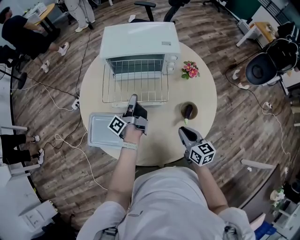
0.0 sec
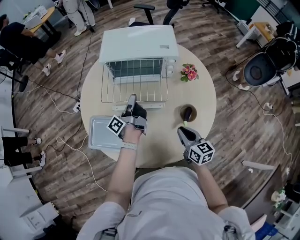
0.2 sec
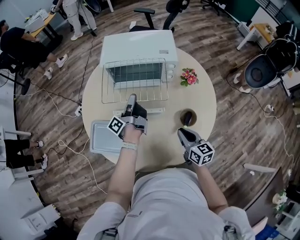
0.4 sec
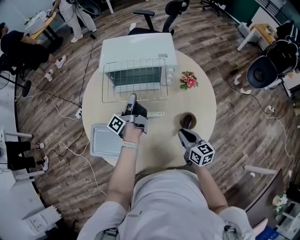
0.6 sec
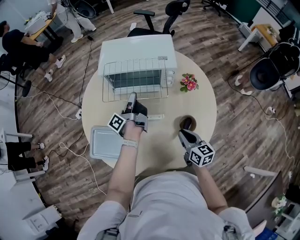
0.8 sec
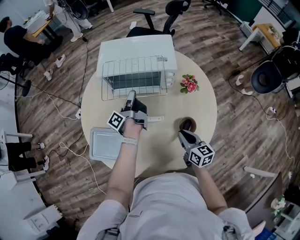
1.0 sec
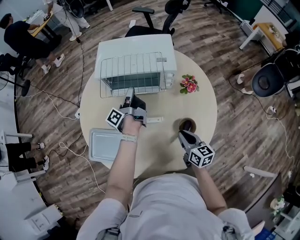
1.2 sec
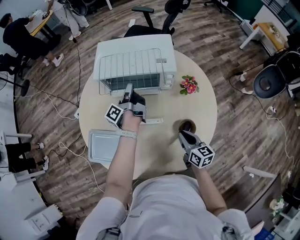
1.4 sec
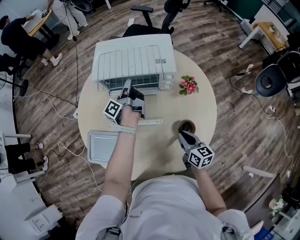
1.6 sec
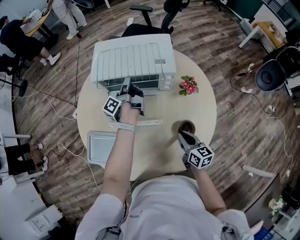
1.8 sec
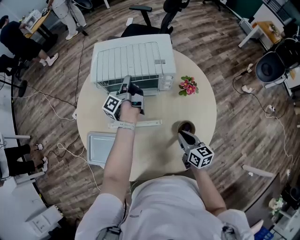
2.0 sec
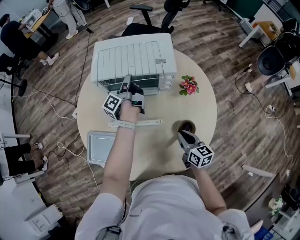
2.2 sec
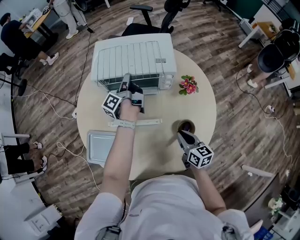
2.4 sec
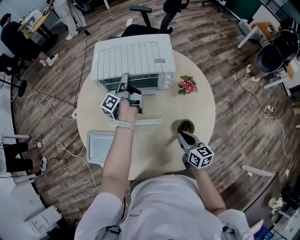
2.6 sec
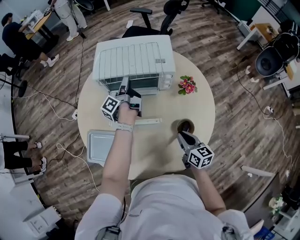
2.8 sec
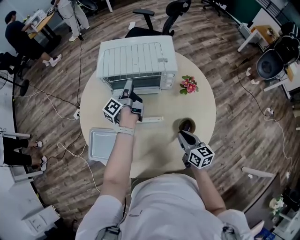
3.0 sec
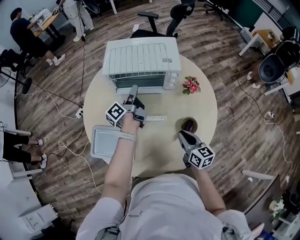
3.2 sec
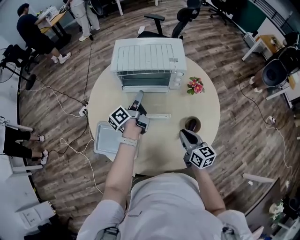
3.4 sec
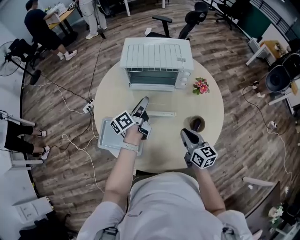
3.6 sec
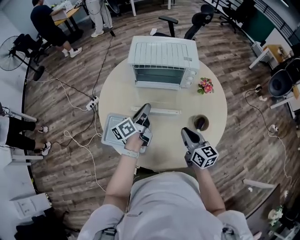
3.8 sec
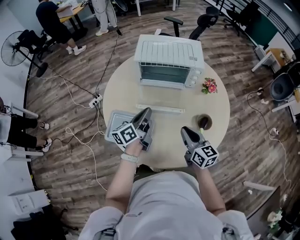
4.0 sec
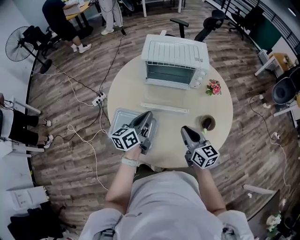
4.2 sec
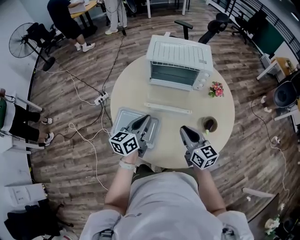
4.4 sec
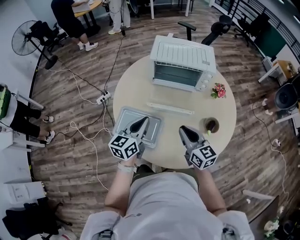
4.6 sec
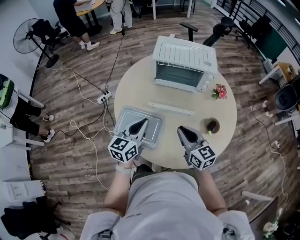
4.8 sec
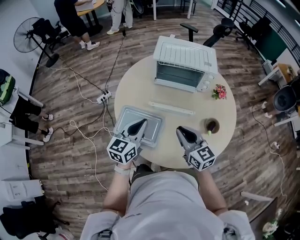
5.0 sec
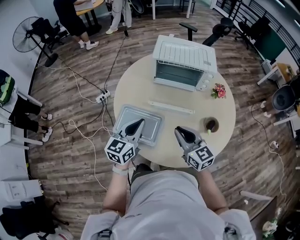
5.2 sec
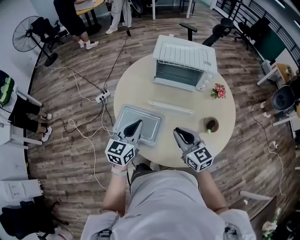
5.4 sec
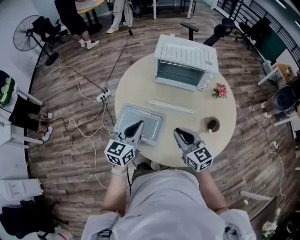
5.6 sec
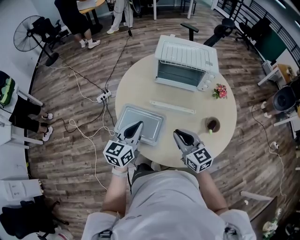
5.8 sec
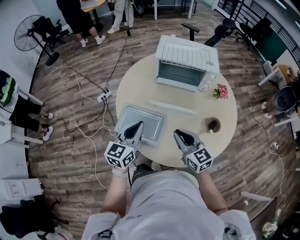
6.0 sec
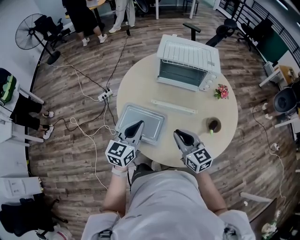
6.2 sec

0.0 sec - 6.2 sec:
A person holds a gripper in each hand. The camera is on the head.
0.0 sec - 1.6 sec: The right gripper moves forward, some 10 cm, while the left gripper is displaced forward by roughly 20 cm.
1.6 sec - 3.2 sec: The left gripper is displaced backward by about 5 cm, and opens up. The right gripper ends up about 5 cm from where it was.
3.2 sec - 4.6 sec: The left gripper travels backward and to the left by approximately 30 cm, rotates around the line of its fingers by about 60 degrees, clockwise from behind, and closes. Meanwhile the right gripper is displaced to the left and upward by roughly 20 cm, and swivels roughly 20 degrees.
4.6 sec - 6.2 sec: The right gripper travels to the left by approximately 5 cm. Meanwhile the left gripper moves roughly 5 cm.

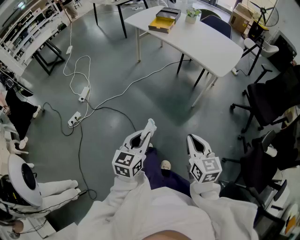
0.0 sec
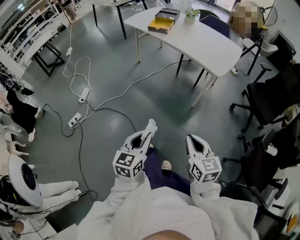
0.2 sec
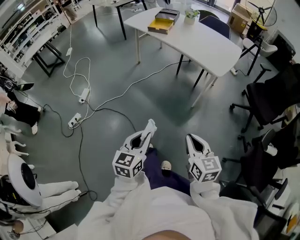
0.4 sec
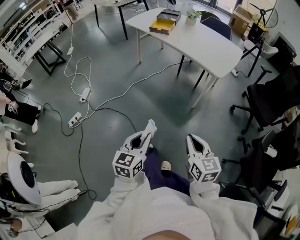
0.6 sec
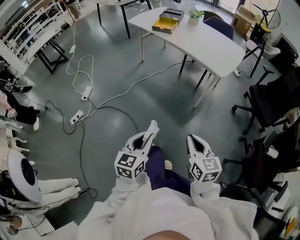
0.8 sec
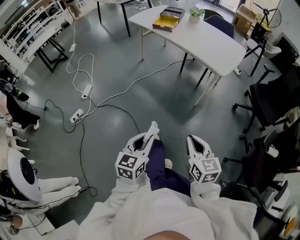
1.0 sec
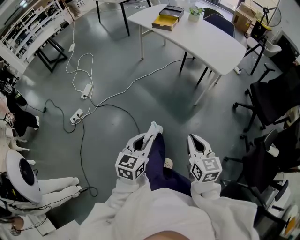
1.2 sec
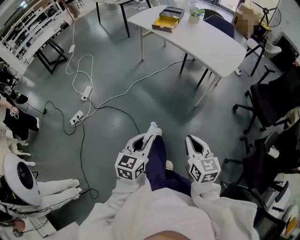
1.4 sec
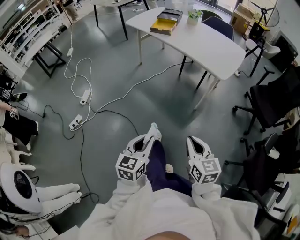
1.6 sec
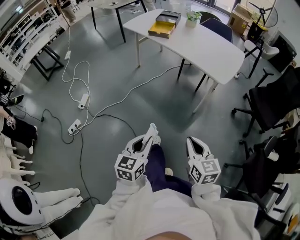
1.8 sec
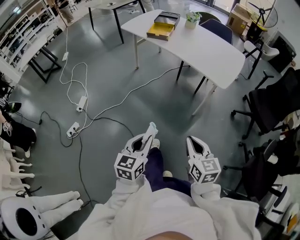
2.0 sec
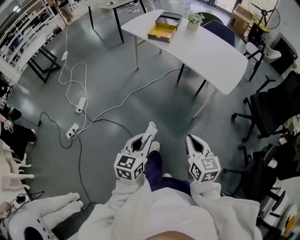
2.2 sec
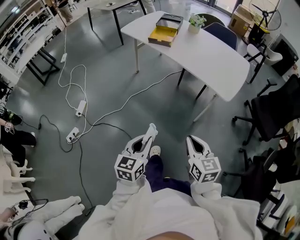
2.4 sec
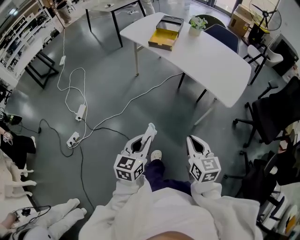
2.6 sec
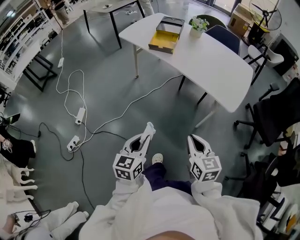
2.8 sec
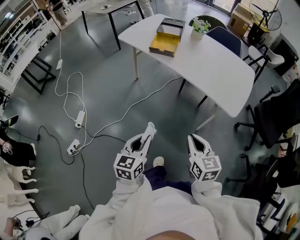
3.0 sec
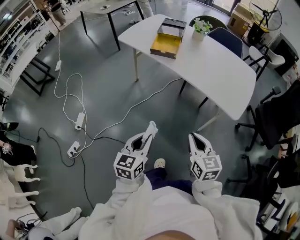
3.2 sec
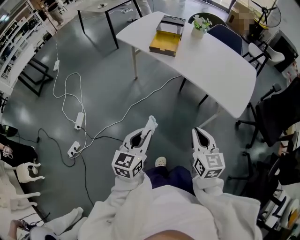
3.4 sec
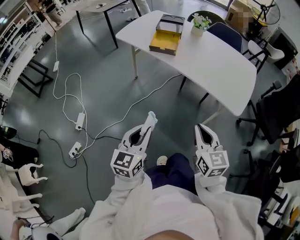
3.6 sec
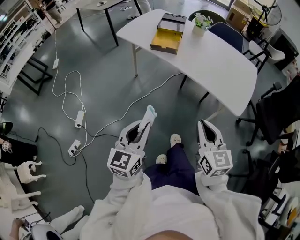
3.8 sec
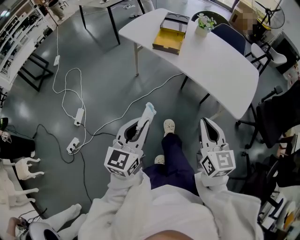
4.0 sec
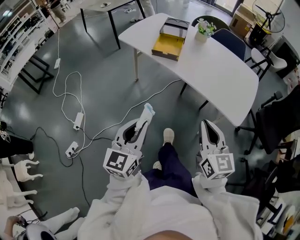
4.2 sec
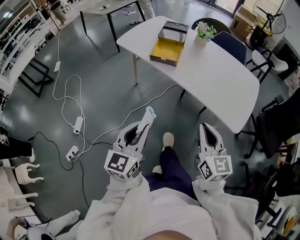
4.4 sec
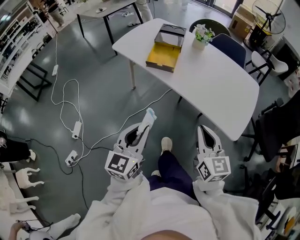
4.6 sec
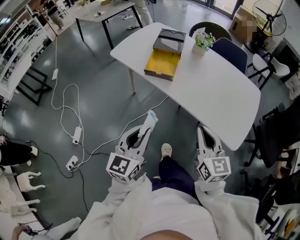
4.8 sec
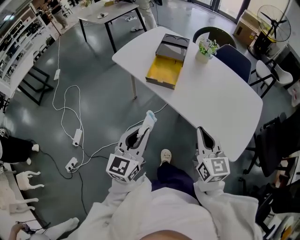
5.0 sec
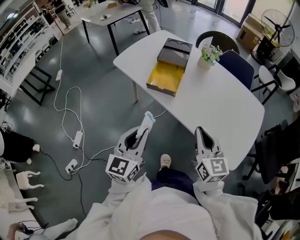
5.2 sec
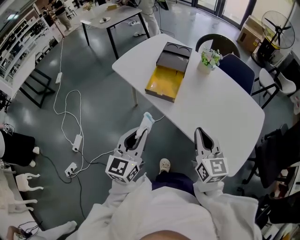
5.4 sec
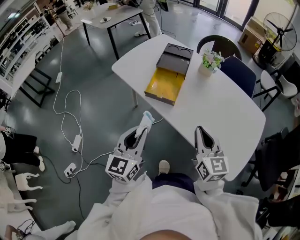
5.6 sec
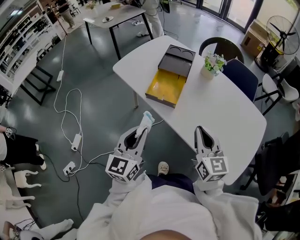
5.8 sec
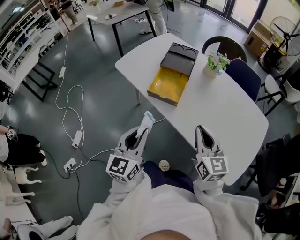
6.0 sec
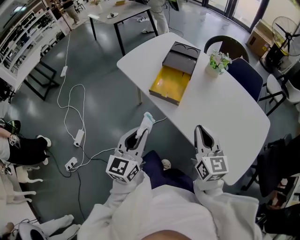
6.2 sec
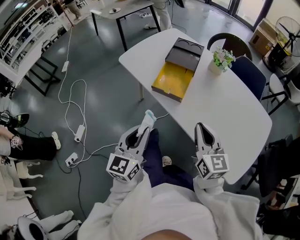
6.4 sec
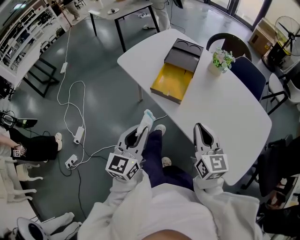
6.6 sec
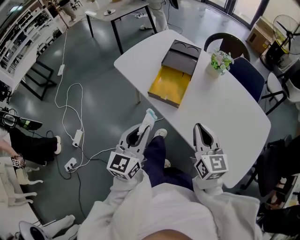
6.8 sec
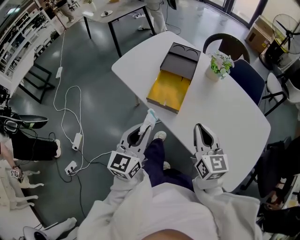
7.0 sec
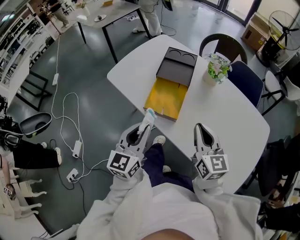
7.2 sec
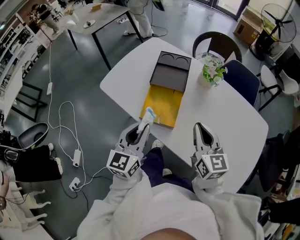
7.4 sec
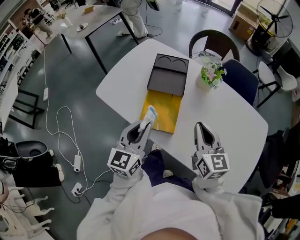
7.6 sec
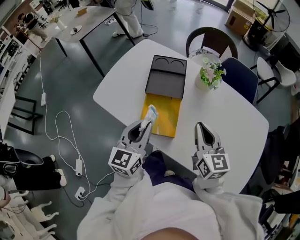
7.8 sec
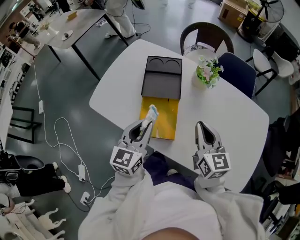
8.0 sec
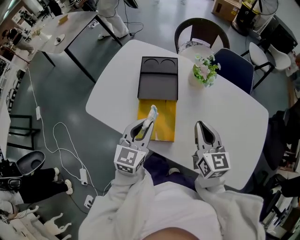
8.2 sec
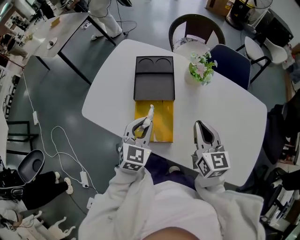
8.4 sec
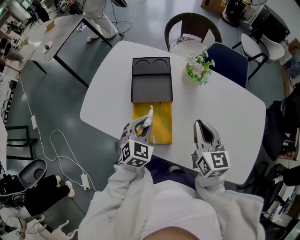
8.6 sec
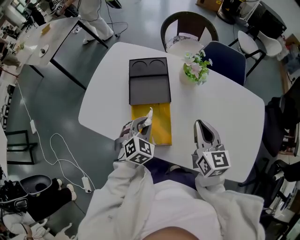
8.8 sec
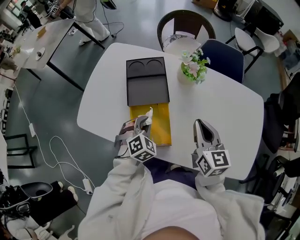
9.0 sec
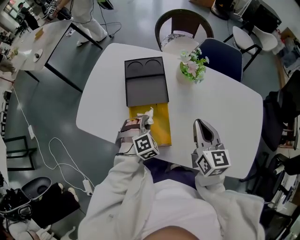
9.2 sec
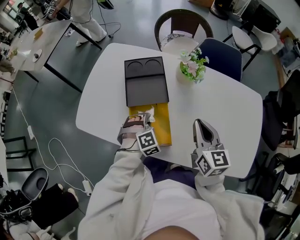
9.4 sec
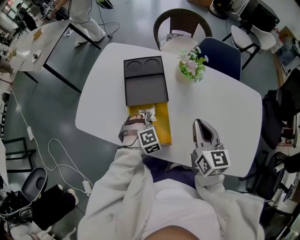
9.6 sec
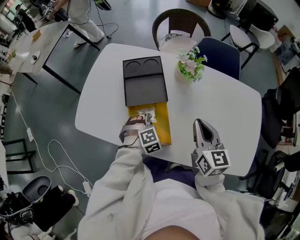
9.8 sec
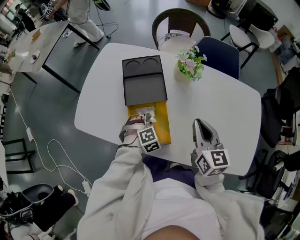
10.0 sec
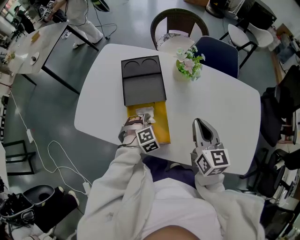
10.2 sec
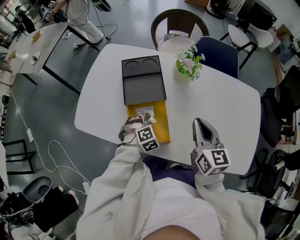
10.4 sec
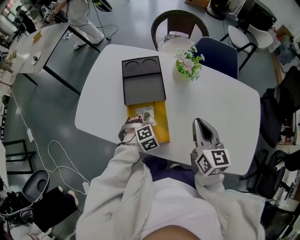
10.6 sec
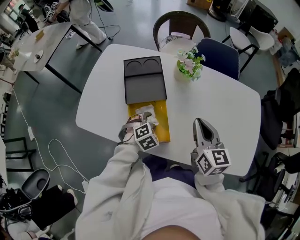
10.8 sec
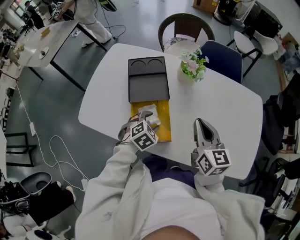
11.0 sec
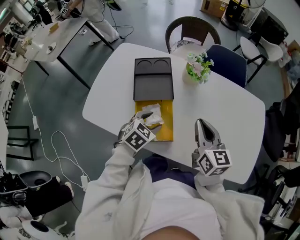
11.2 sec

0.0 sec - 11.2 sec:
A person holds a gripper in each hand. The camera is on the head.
0.0 sec - 1.6 sec: The grippers make only small movements.
1.6 sec - 3.2 sec: Both grippers move forward, about 30 cm.
3.2 sec - 4.8 sec: The left gripper moves forward and upward, about 20 cm. Meanwhile the right gripper is displaced forward by roughly 20 cm.
4.8 sec - 6.4 sec: The grippers both shift forward by some 15 cm.
6.4 sec - 8.0 sec: The grippers both shift forward by approximately 25 cm. The left gripper changes its angle by roughly 20 degrees.
8.0 sec - 9.6 sec: The left gripper travels downward and forward by about 20 cm, and rotates around the line of its fingers by approximately 70 degrees, clockwise from behind.
9.6 sec - 11.2 sec: The left gripper shifts approximately 5 cm upward, swivels roughly 40 degrees, and opens up.

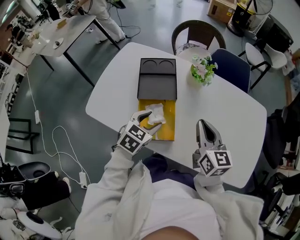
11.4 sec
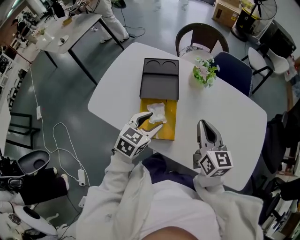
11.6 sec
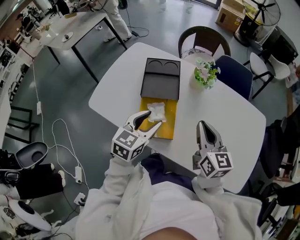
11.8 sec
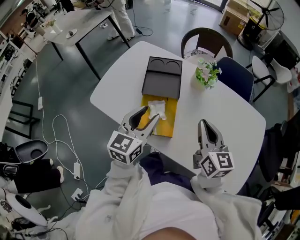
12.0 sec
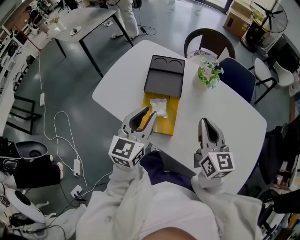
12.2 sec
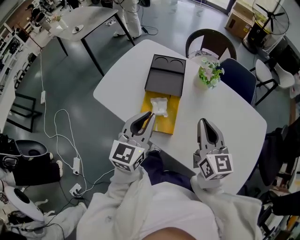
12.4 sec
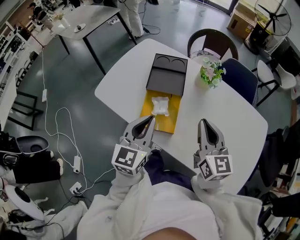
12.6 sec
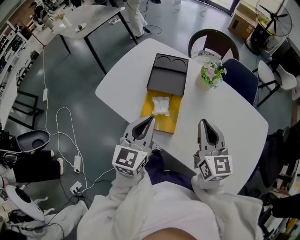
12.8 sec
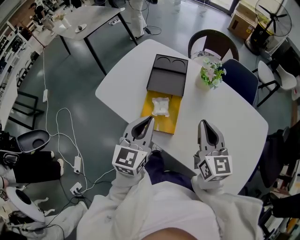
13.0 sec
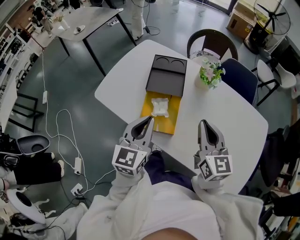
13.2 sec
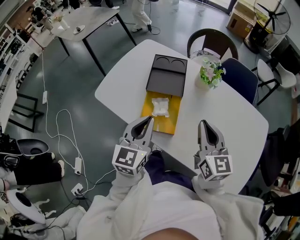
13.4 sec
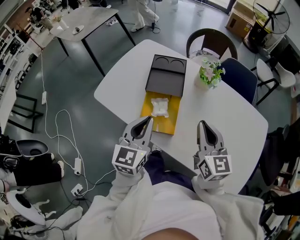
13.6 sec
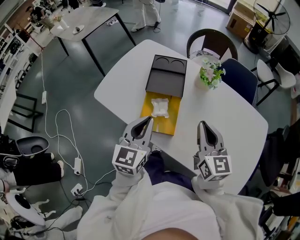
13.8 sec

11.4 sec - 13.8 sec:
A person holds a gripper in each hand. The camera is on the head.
11.4 sec - 12.6 sec: The left gripper heads upward and backward, covering roughly 15 cm, tilts its fingers about 30 degrees upward, and closes. The right gripper is displaced upward by approximately 5 cm.
12.6 sec - 13.8 sec: The grippers stay close to where they were, moving slightly.

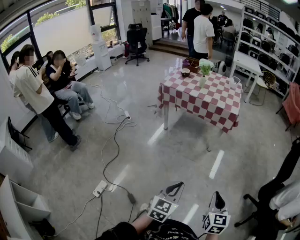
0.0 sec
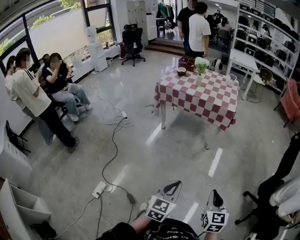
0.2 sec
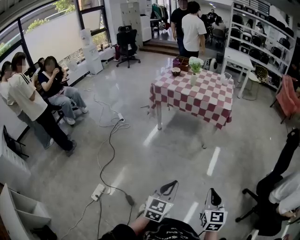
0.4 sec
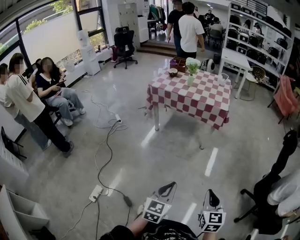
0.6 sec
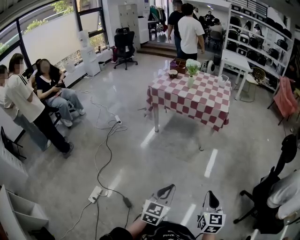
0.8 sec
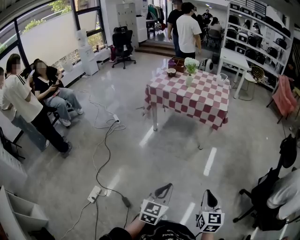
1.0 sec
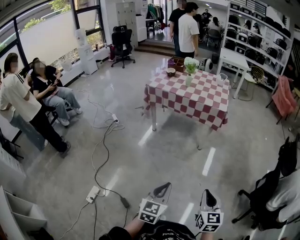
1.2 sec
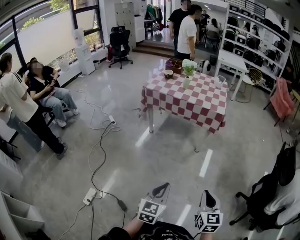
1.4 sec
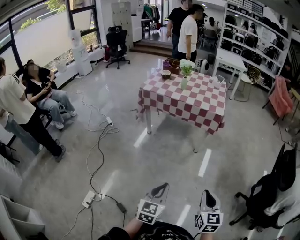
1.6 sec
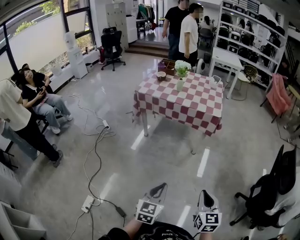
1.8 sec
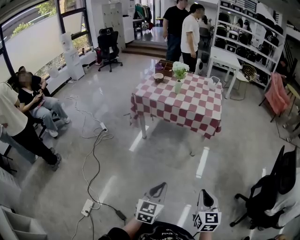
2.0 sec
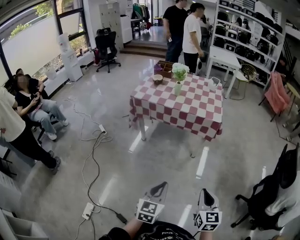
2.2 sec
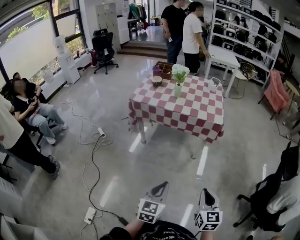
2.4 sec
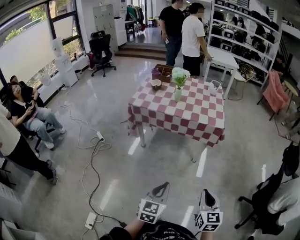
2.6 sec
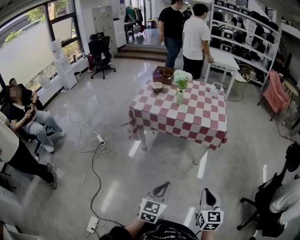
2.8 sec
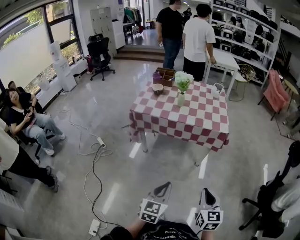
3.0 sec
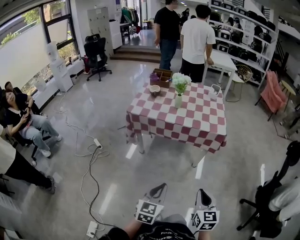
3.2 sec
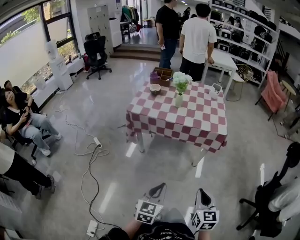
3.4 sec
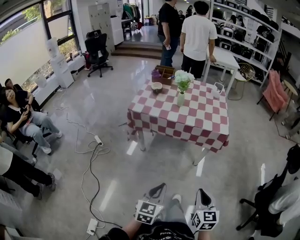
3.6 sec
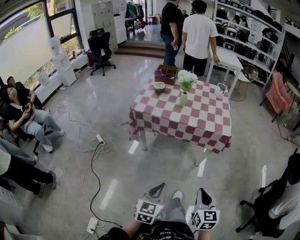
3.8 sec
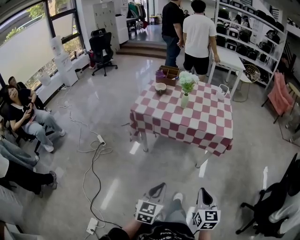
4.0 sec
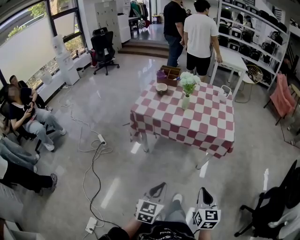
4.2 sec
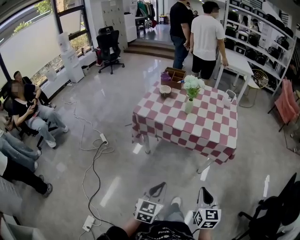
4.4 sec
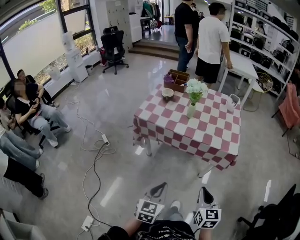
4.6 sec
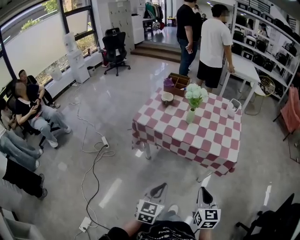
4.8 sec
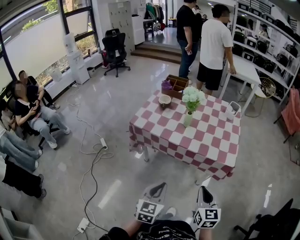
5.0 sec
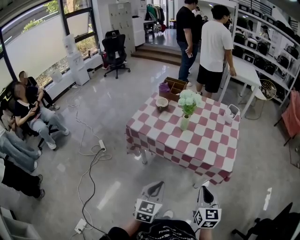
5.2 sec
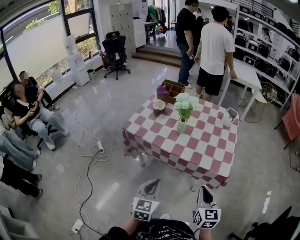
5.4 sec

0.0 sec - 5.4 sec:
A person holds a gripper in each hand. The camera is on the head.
0.0 sec - 1.4 sec: The grippers move only a little.
1.4 sec - 2.8 sec: The left gripper is displaced forward by about 20 cm; the right gripper moves forward and to the left, roughly 20 cm.
2.8 sec - 4.0 sec: Both grippers move forward, some 5 cm.
4.0 sec - 5.4 sec: The two grippers go about 20 cm forward.
